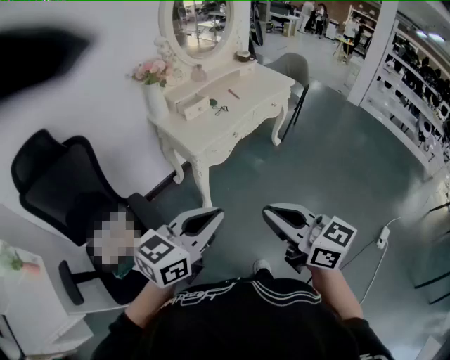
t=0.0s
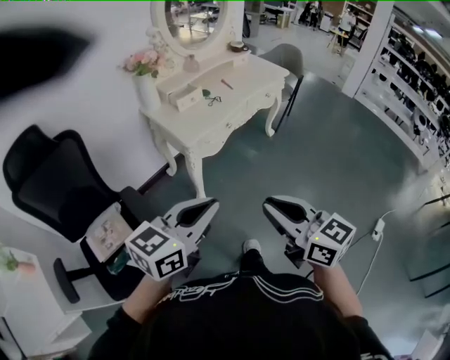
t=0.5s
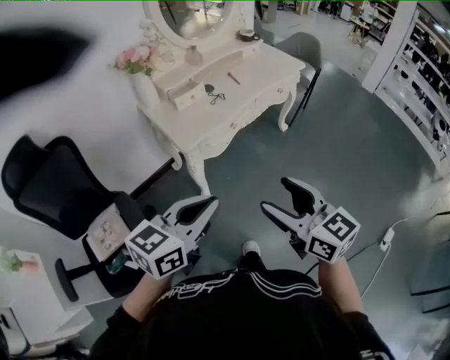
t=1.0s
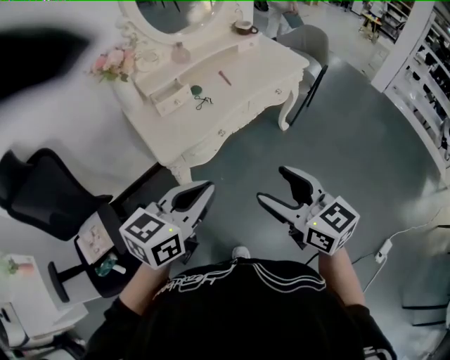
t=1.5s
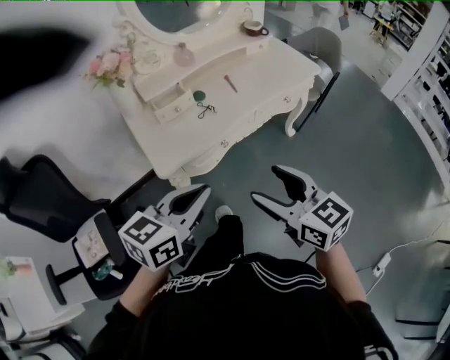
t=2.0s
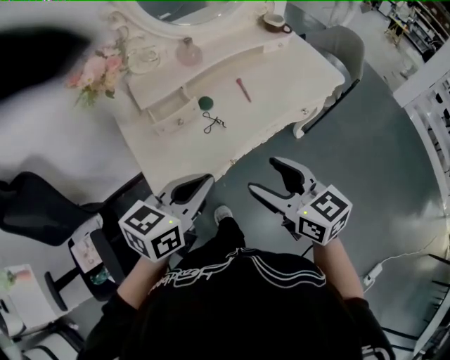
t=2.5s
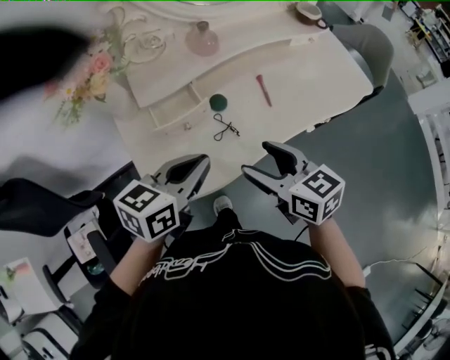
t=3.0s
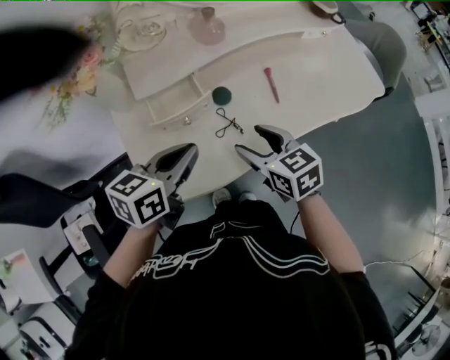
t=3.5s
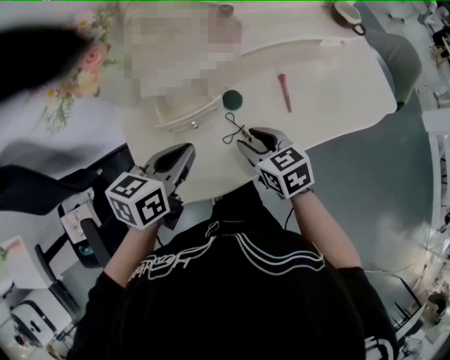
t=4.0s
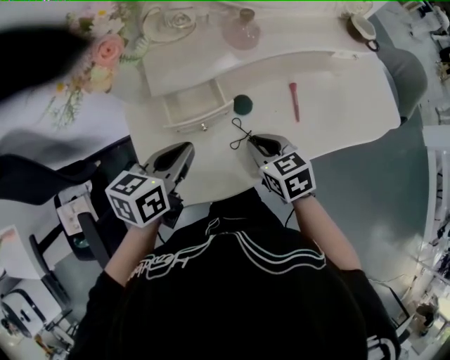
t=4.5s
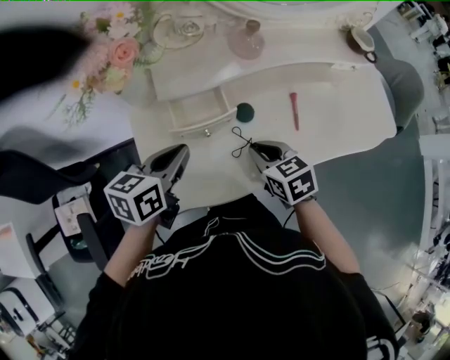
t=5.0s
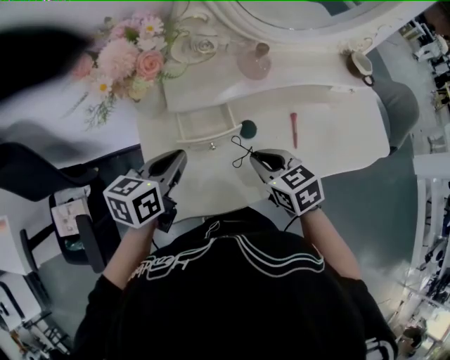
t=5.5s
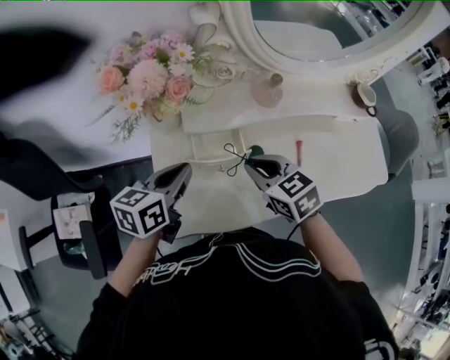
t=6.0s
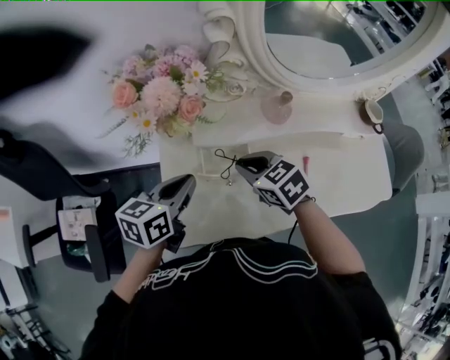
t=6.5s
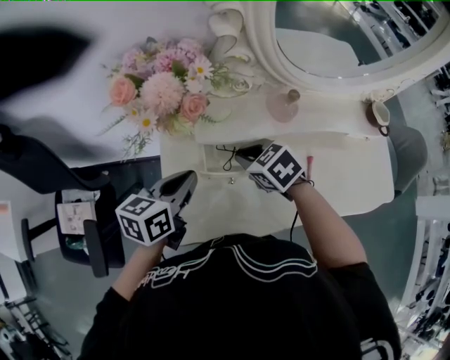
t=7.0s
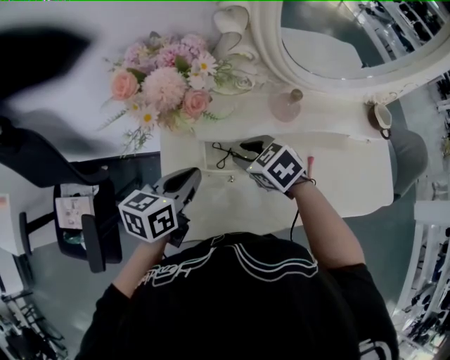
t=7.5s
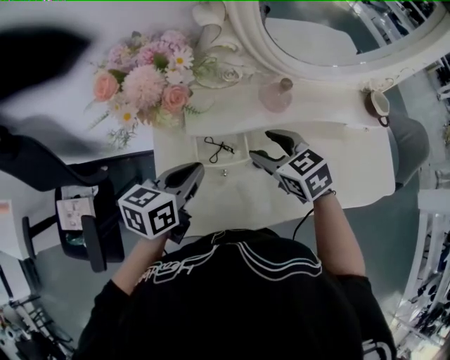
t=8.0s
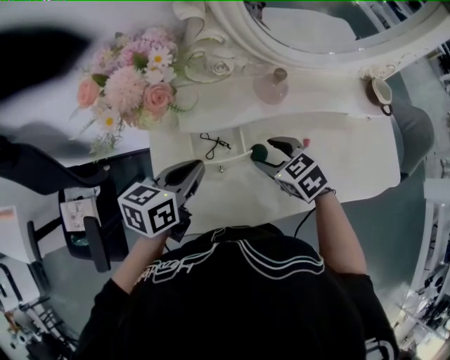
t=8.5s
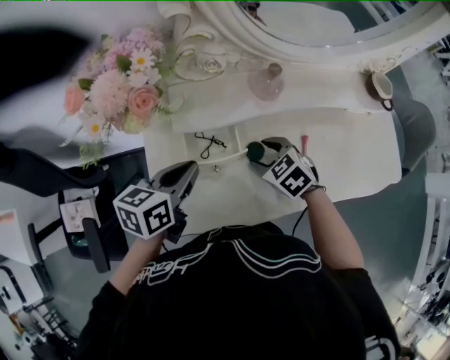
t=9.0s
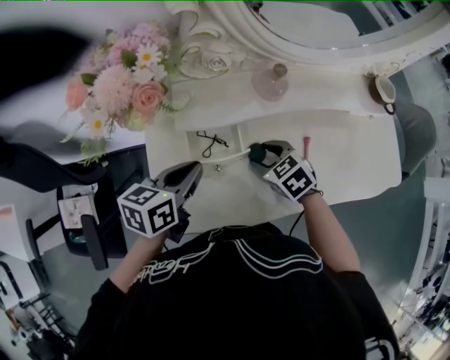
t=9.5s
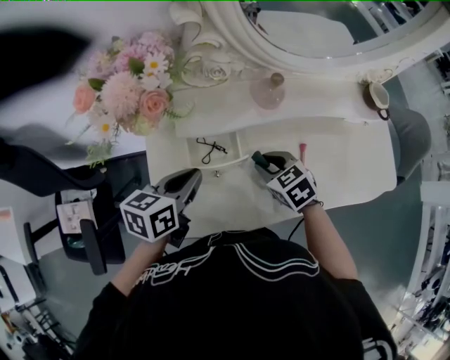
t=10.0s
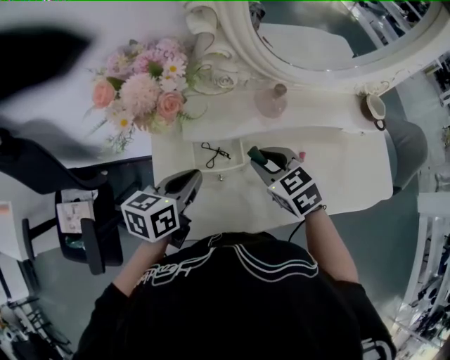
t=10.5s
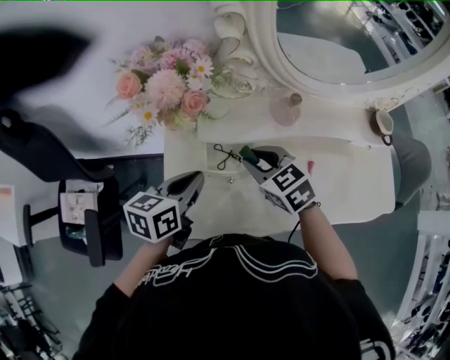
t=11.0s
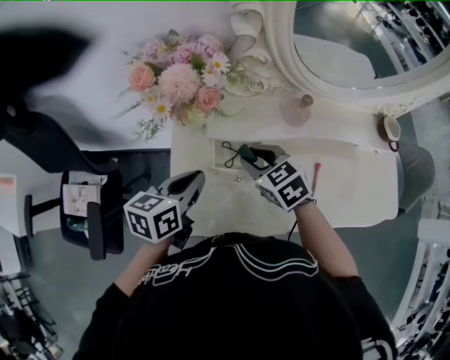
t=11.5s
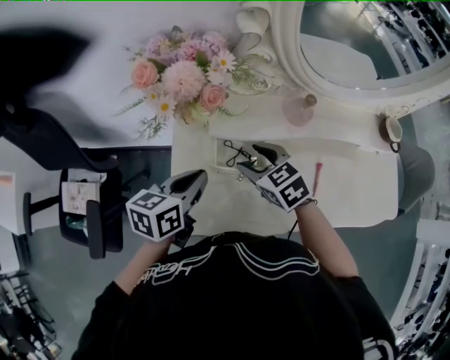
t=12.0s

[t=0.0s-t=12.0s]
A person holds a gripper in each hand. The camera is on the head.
t=0.0s to t=2.0s: The right gripper shifts roughly 40 cm forward and to the right, and opens, while the left gripper travels forward by approximately 35 cm.
t=2.0s to t=4.0s: The grippers both shift forward and downward by about 40 cm. The left gripper turns by some 30 degrees. Meanwhile the right gripper turns by about 30 degrees, and closes up.
t=4.0s to t=6.0s: The right gripper travels upward, to the left and forward by about 15 cm, and closes. Meanwhile the left gripper moves to the left, roughly 10 cm.
t=6.0s to t=8.0s: The right gripper is displaced forward by some 5 cm, and opens up.
t=8.0s to t=10.0s: The right gripper heads downward, covering some 10 cm, and closes its fingers.
t=10.0s to t=12.0s: The left gripper heads to the left, covering some 5 cm, while the right gripper is displaced to the left and upward by some 15 cm, and opens its fingers.

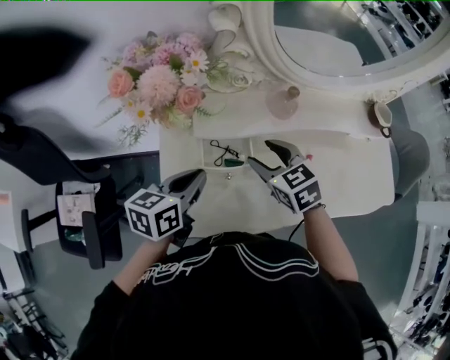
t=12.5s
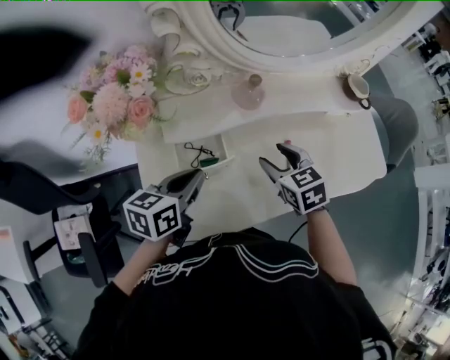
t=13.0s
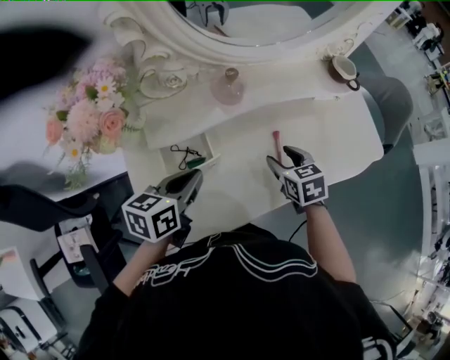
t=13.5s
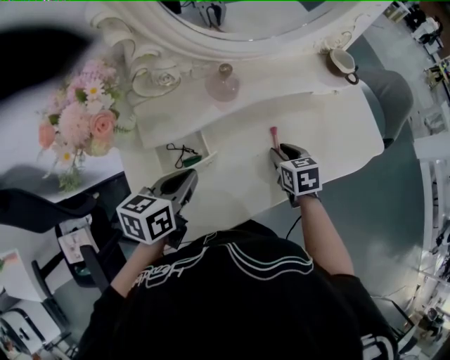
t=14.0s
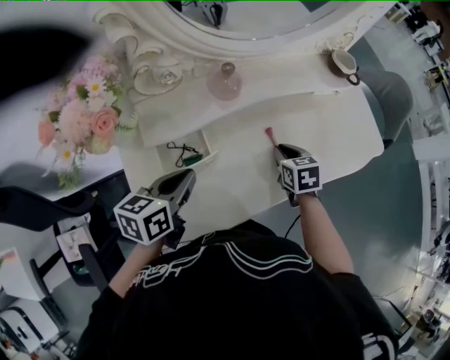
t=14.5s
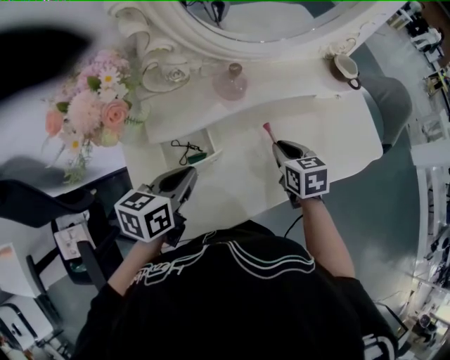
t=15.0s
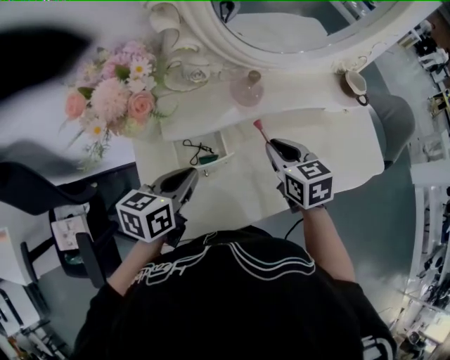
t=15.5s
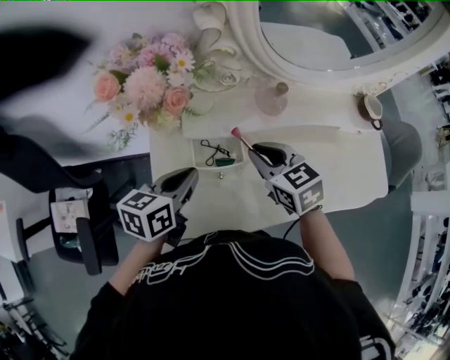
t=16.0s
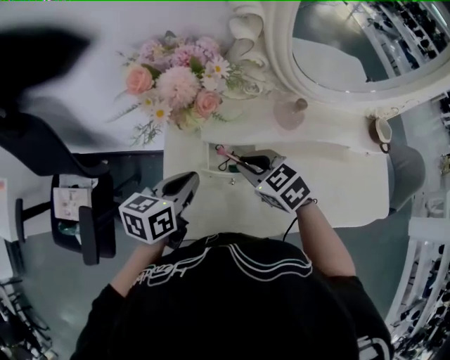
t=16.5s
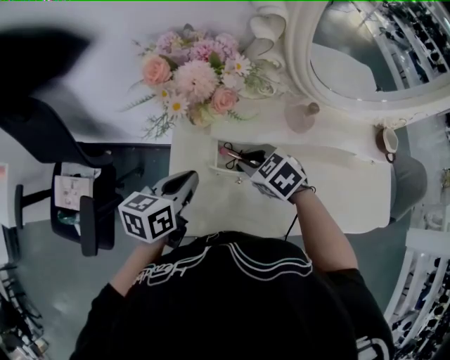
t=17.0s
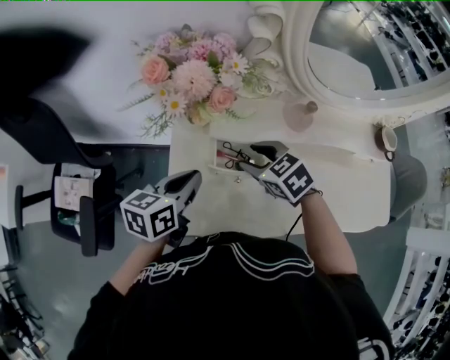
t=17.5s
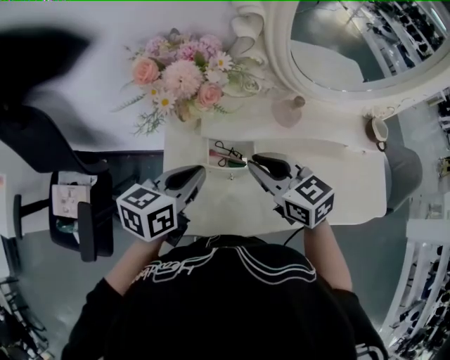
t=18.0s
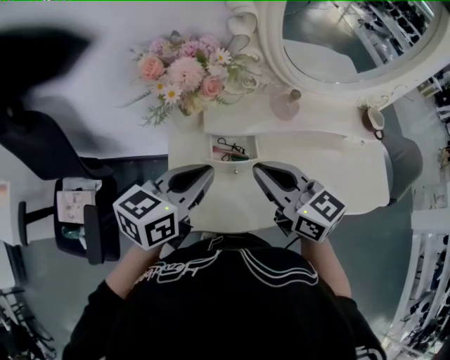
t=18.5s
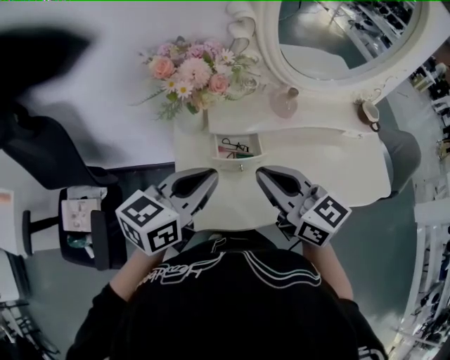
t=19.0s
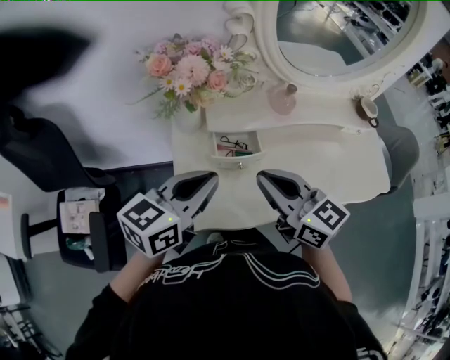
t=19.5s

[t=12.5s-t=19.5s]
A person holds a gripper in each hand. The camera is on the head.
t=12.5s to t=14.5s: The left gripper is displaced to the right by some 10 cm; the right gripper is displaced to the right and downward by roughly 25 cm, swivels about 40 degrees, and closes its fingers.
t=14.5s to t=16.0s: The right gripper moves to the left and upward, approximately 25 cm, and swivels some 40 degrees. The left gripper goes some 10 cm to the left.
t=16.0s to t=17.5s: The right gripper is displaced to the left by some 5 cm, rotates about 20 degrees, and opens its fingers.
t=17.5s to t=19.5s: The right gripper moves upward and backward, some 20 cm, tips its fingers upward by some 40 degrees, and closes its fingers; the left gripper shifts roughly 15 cm upward and backward, and changes its angle by roughly 30 degrees.

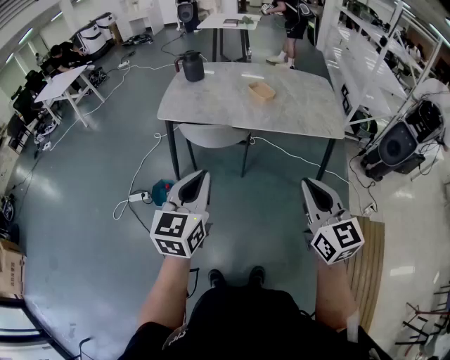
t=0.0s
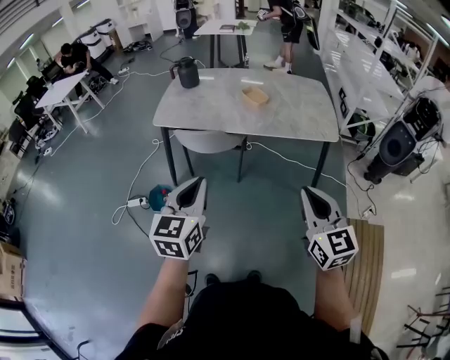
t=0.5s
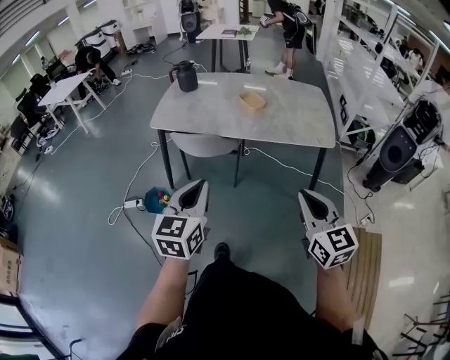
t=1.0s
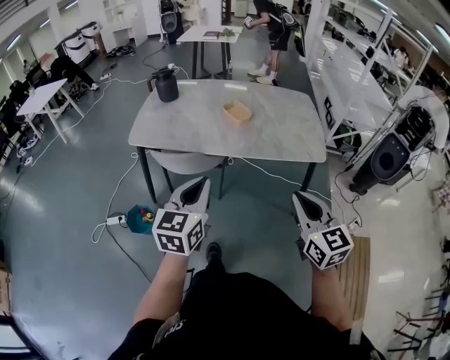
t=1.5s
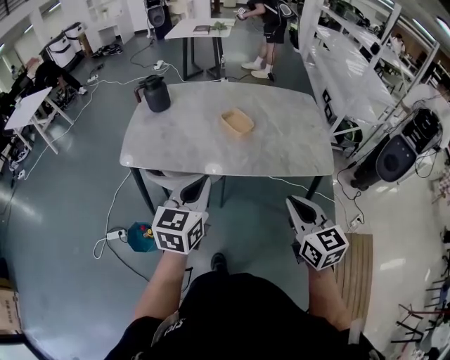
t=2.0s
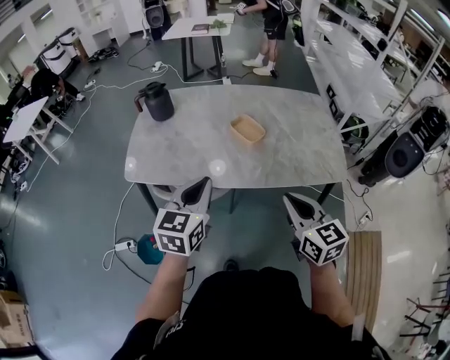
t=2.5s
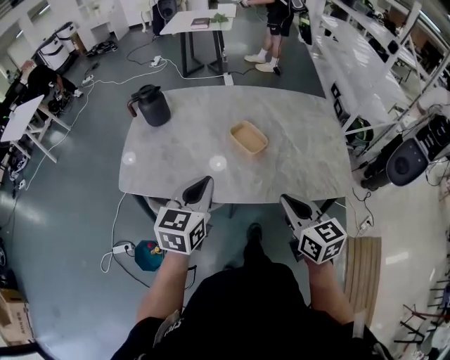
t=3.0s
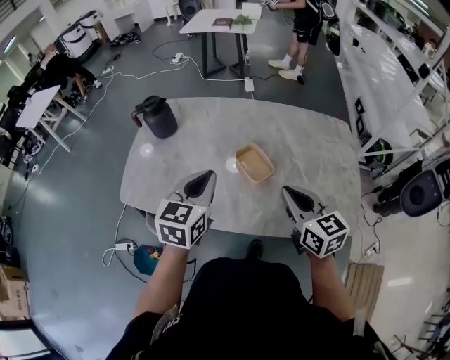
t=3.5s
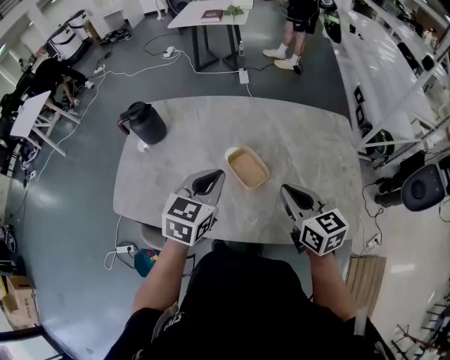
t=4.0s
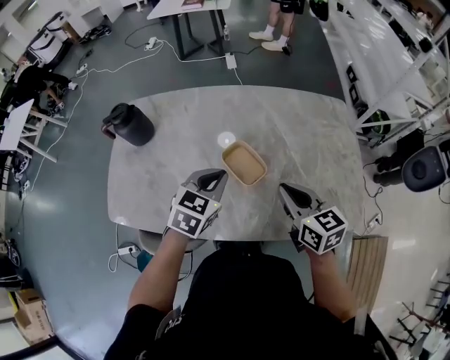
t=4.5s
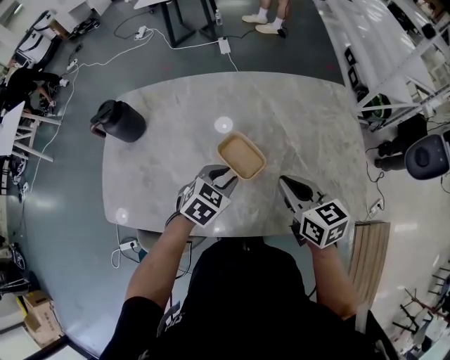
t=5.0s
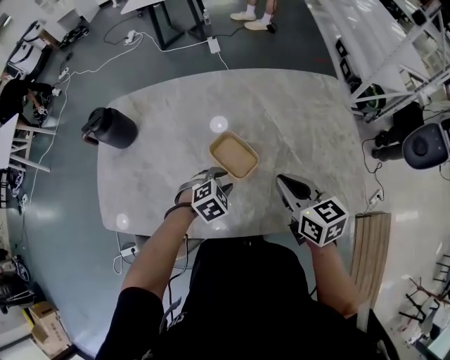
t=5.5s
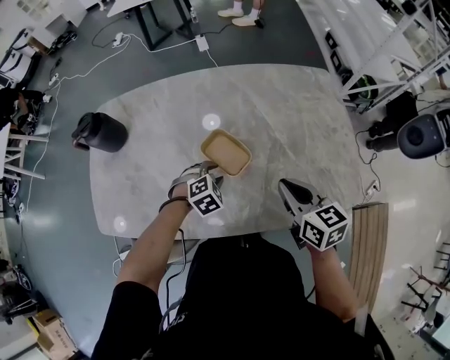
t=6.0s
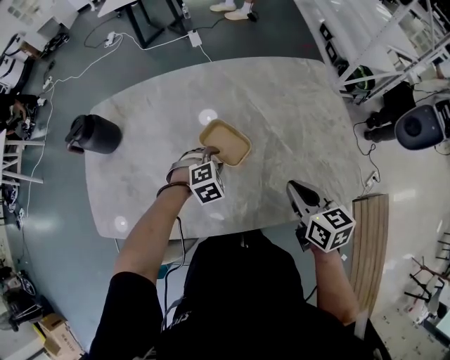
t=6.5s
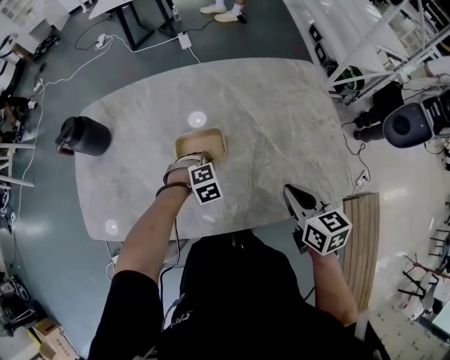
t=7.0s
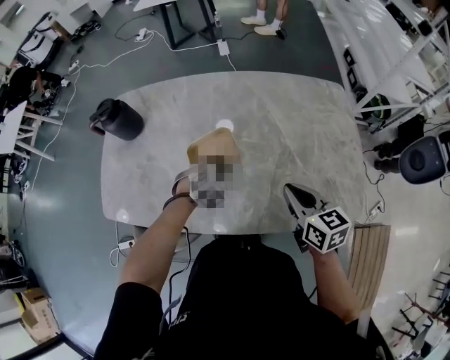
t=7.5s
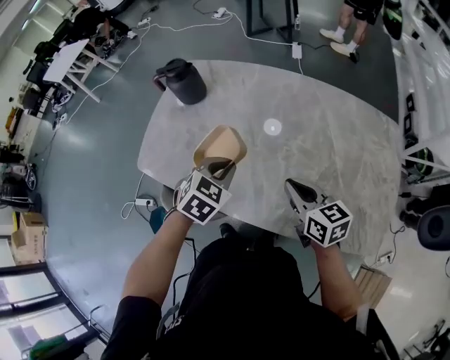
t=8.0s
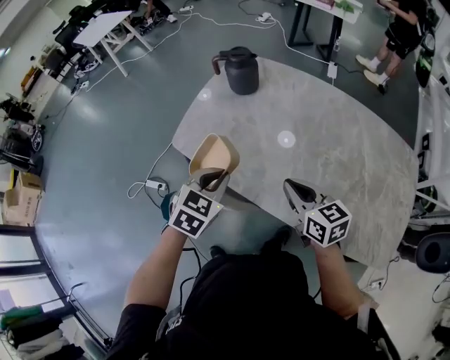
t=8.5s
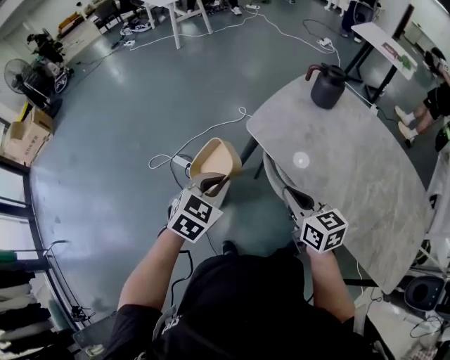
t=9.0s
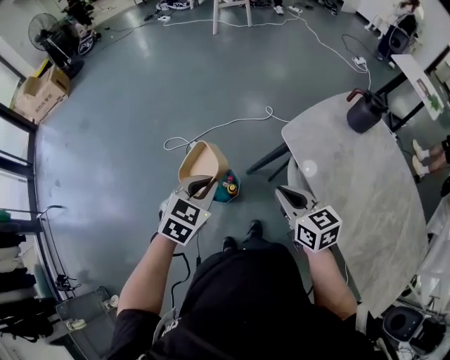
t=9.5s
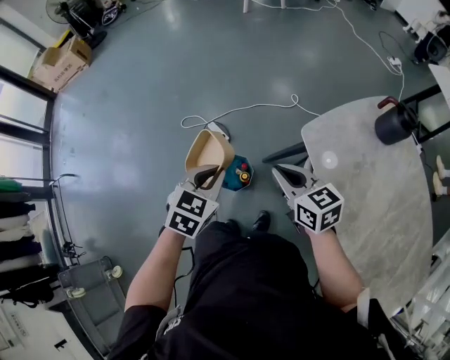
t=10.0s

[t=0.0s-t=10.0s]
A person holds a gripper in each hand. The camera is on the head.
t=0.0s to t=2.0s: The grippers both shift forward by approximately 25 cm.
t=2.0s to t=4.0s: Both grippers move forward, some 35 cm.
t=4.0s to t=6.0s: The left gripper shifts roughly 25 cm downward, points its fingers approximately 40 degrees further downward, and opens up. The right gripper travels downward by some 10 cm.
t=6.0s to t=8.0s: The left gripper shifts roughly 15 cm upward, swivels roughly 50 degrees, and closes, while the right gripper moves roughly 10 cm, and swivels roughly 30 degrees.
t=8.0s to t=10.0s: The pair of grippers is taken roughly 60 cm. The left gripper changes its angle by some 60 degrees; the right gripper rotates about 50 degrees.
